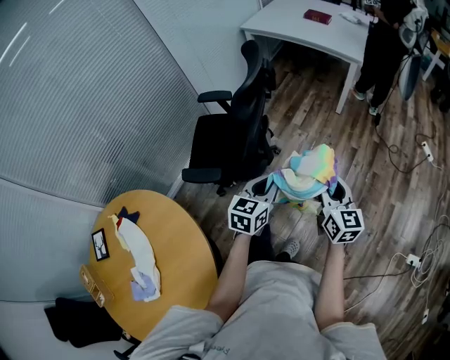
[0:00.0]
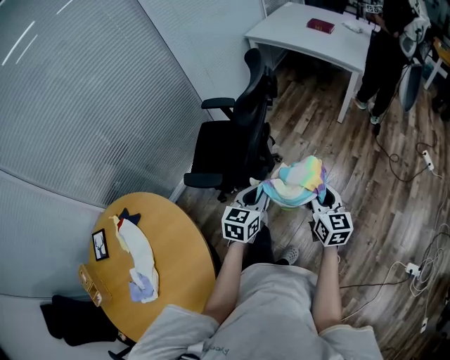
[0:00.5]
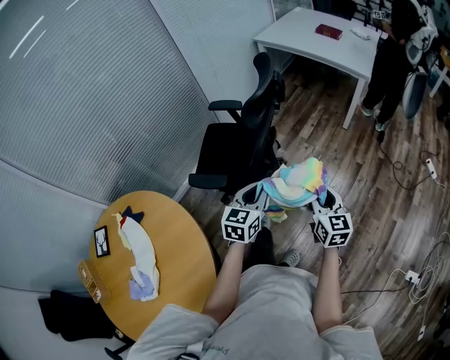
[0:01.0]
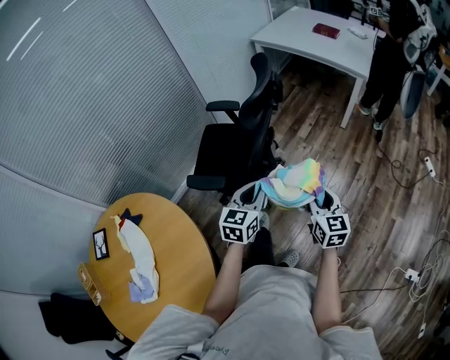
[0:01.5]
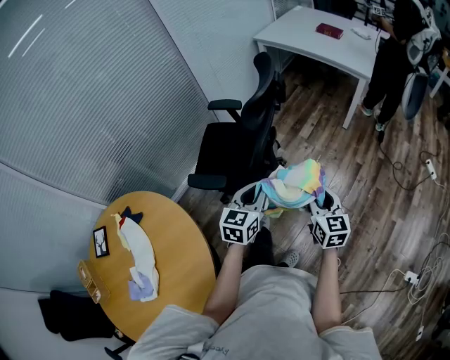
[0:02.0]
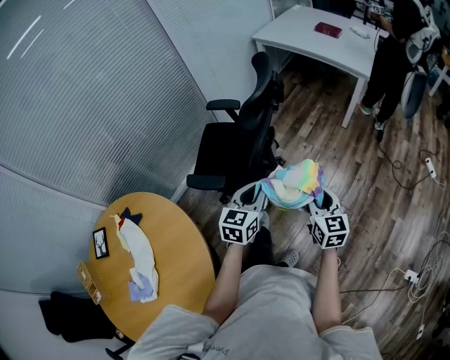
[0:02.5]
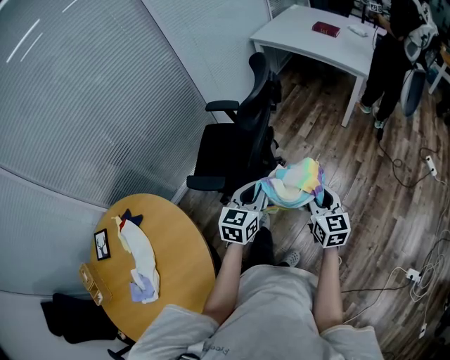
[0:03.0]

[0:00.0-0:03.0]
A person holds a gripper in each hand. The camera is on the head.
0:00.0 to 0:01.5: The right gripper moves about 5 cm. Meanwhile the left gripper shifts approximately 5 cm to the left.
0:01.5 to 0:03.0: Both grippers stay about where they are.

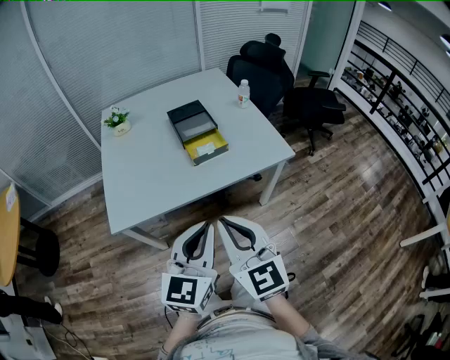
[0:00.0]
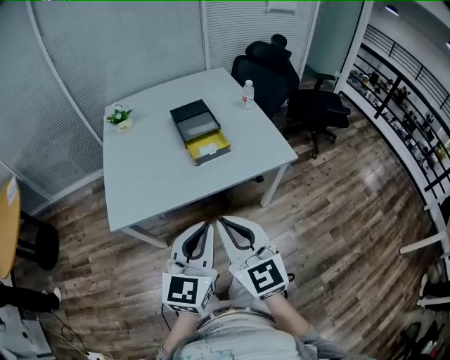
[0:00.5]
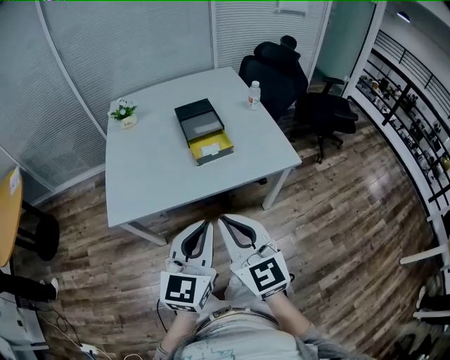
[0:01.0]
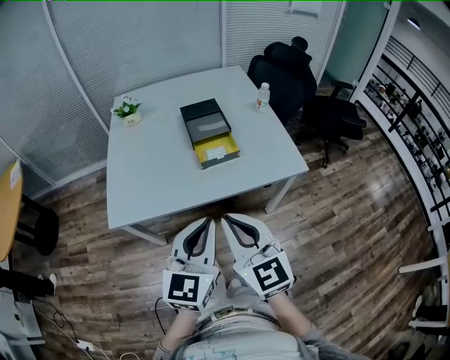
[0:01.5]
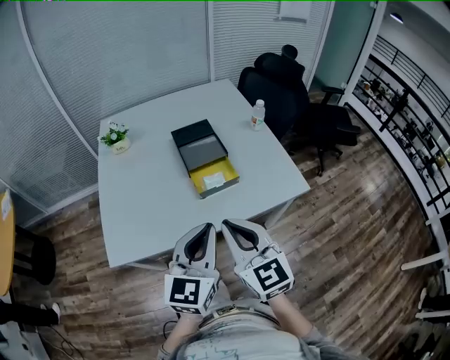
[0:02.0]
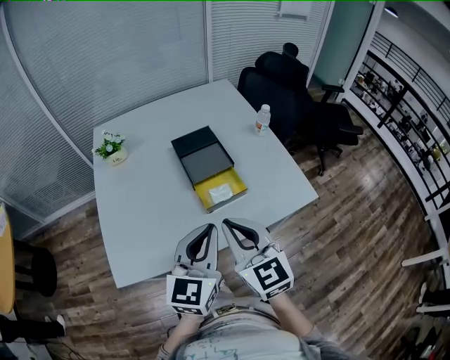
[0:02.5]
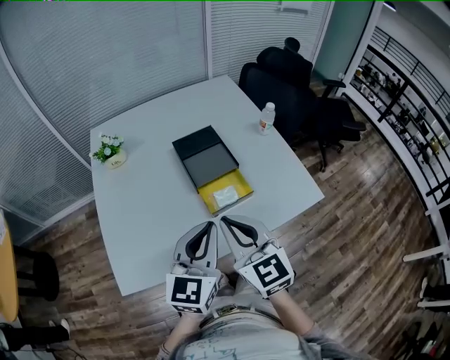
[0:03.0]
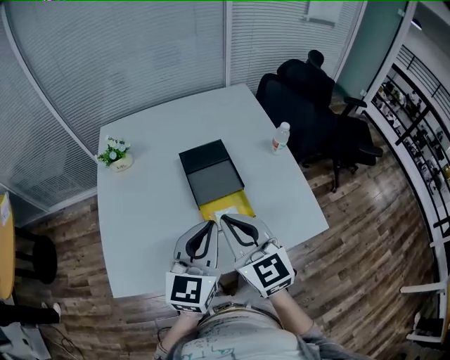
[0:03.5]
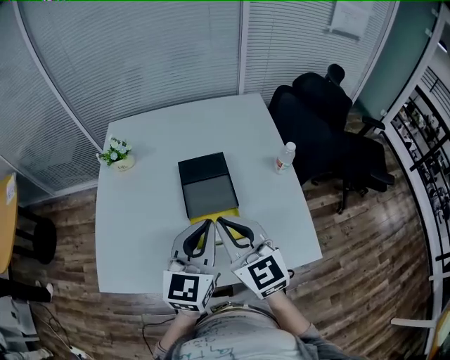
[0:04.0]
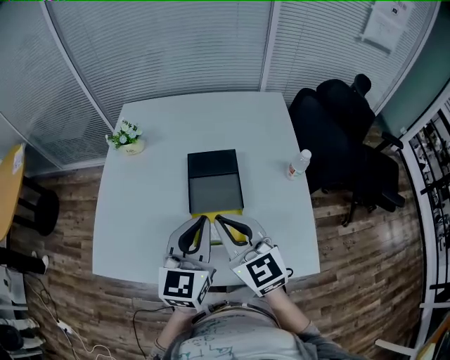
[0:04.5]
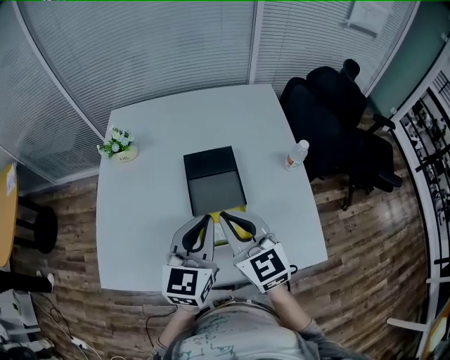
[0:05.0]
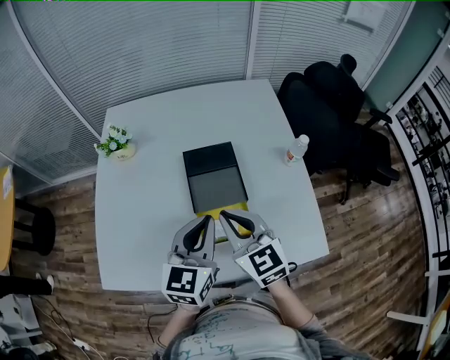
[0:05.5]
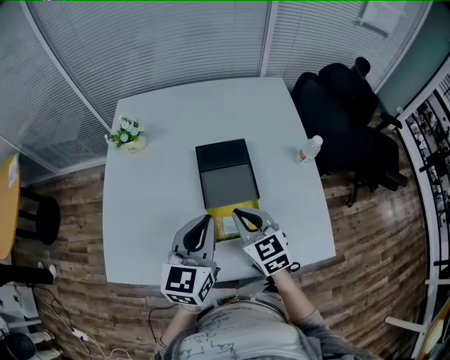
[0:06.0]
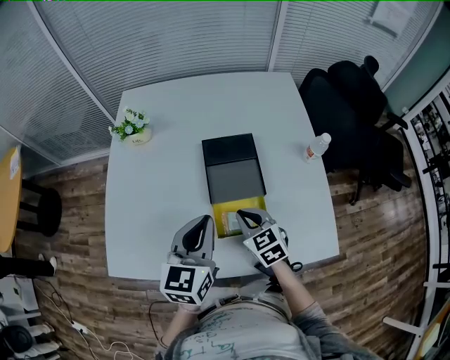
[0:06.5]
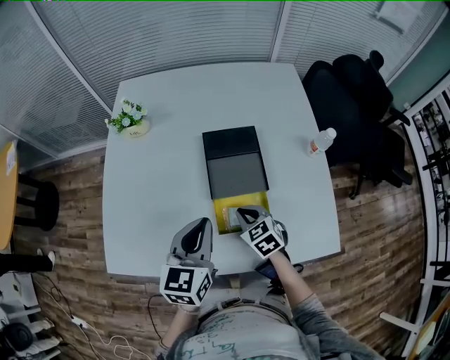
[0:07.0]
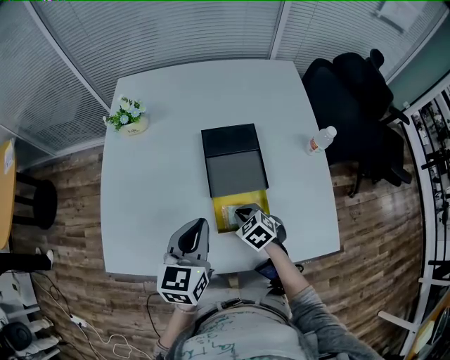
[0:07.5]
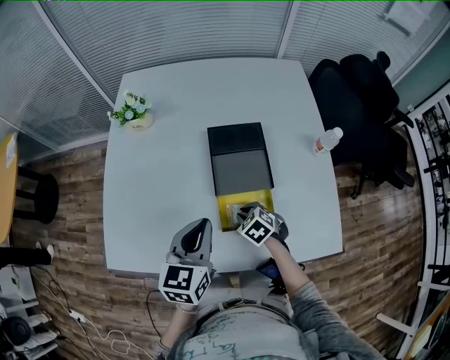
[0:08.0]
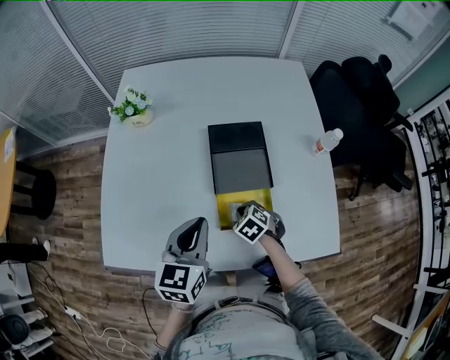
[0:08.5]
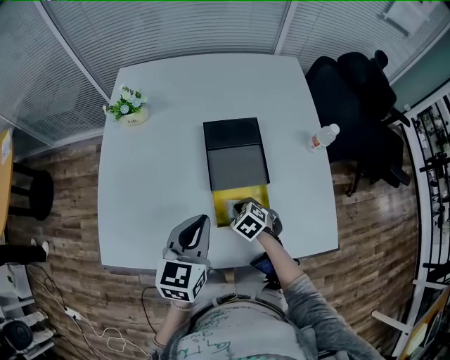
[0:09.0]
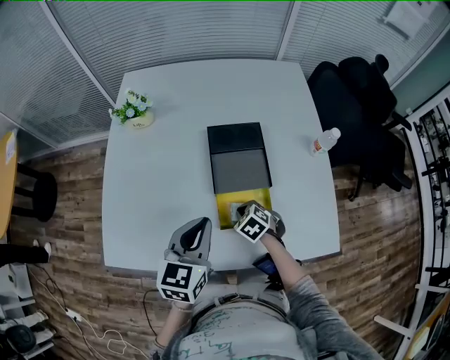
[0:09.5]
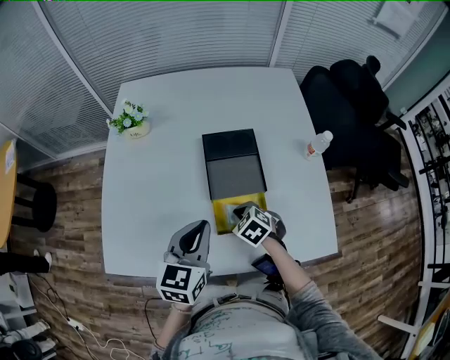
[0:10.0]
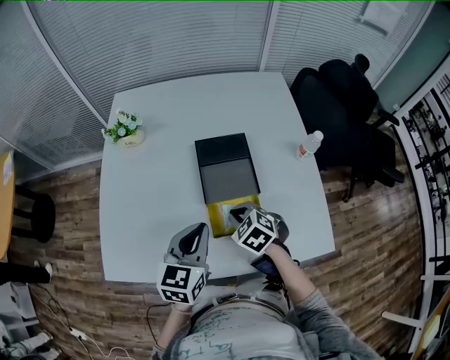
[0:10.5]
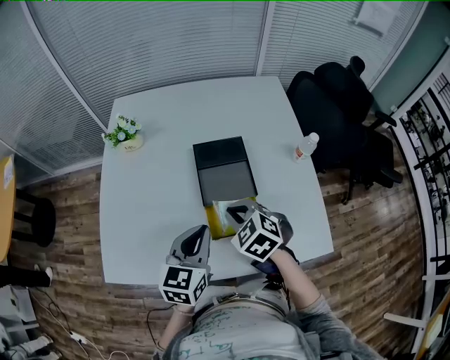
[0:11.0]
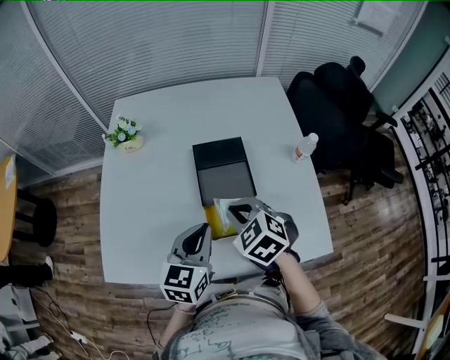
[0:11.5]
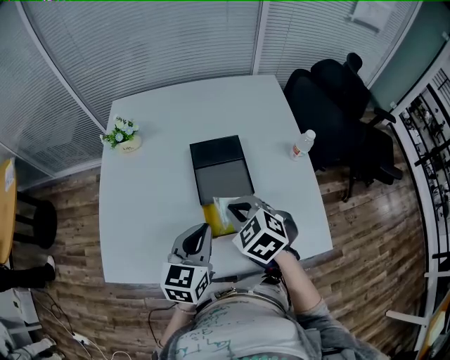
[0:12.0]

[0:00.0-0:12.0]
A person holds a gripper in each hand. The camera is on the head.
0:00.0 to 0:02.0: Both grippers move forward, roughly 20 cm.
0:02.0 to 0:04.0: The two grippers go roughly 30 cm forward.
0:04.0 to 0:06.0: The left gripper moves to the left, roughly 5 cm. The right gripper is displaced downward and forward by approximately 15 cm.
0:06.0 to 0:08.0: The left gripper travels downward and to the left by roughly 10 cm. Meanwhile the right gripper heads downward, covering about 20 cm, and points its fingers about 40 degrees further downward.
0:08.0 to 0:10.0: The grippers make only small movements.
0:10.0 to 0:12.0: The right gripper shifts roughly 20 cm upward.

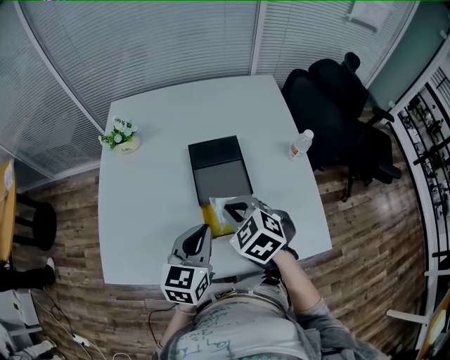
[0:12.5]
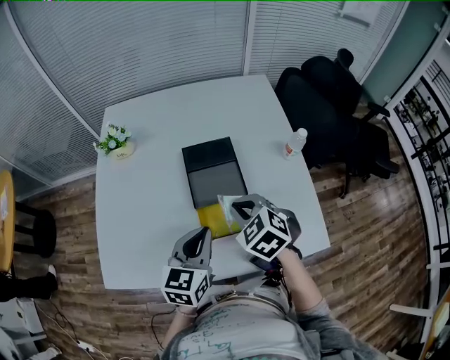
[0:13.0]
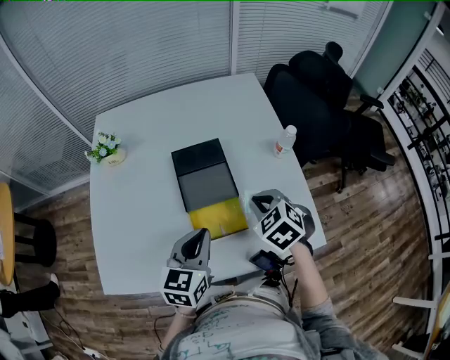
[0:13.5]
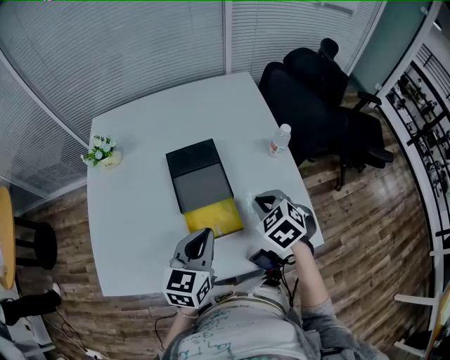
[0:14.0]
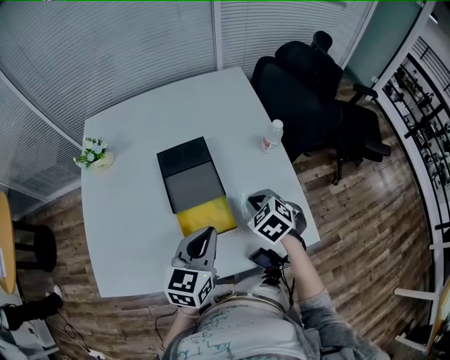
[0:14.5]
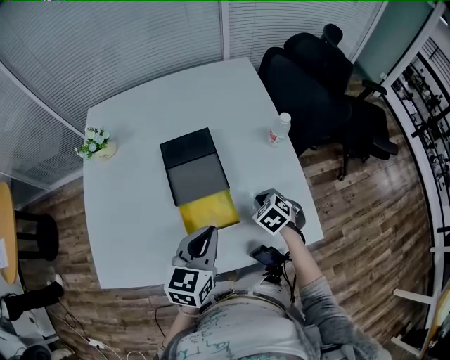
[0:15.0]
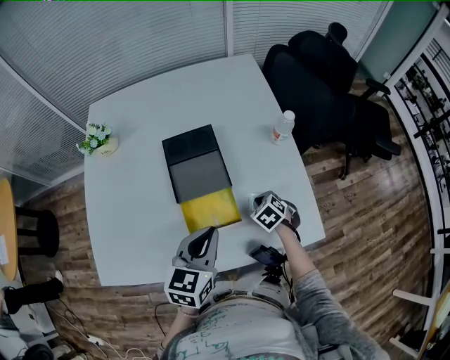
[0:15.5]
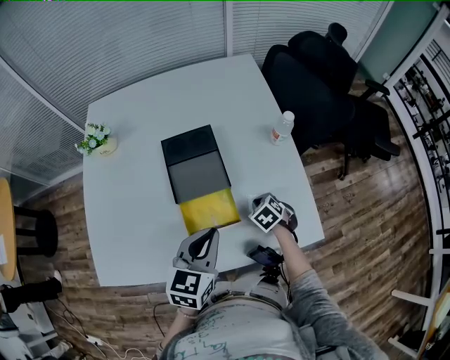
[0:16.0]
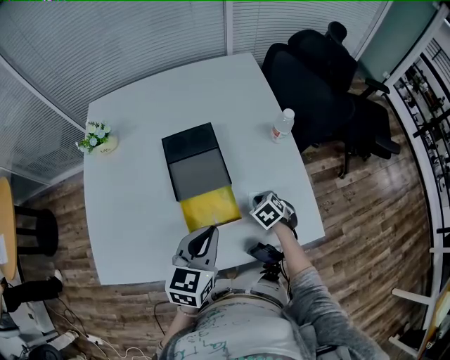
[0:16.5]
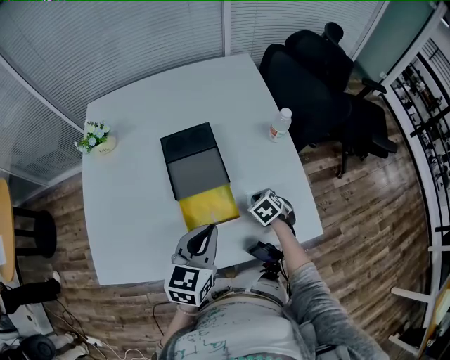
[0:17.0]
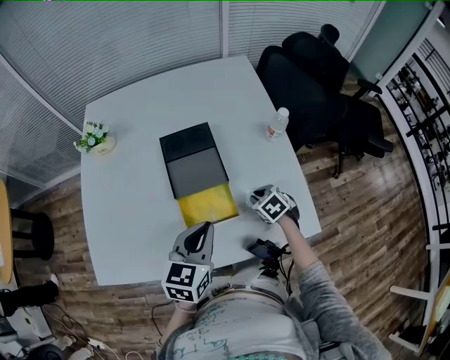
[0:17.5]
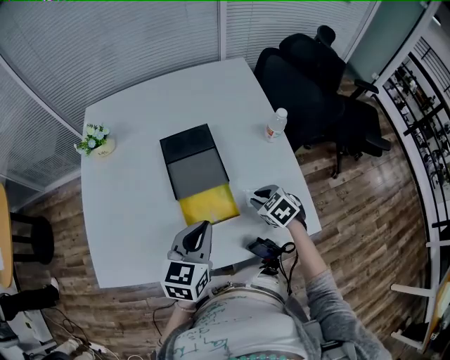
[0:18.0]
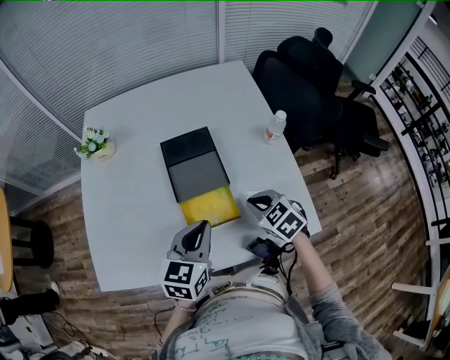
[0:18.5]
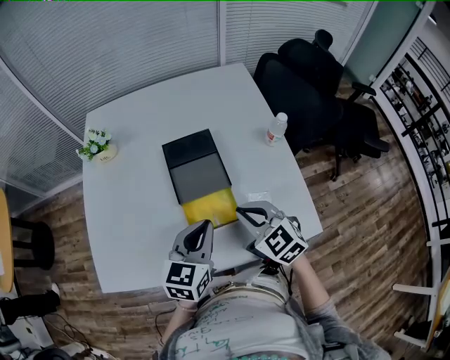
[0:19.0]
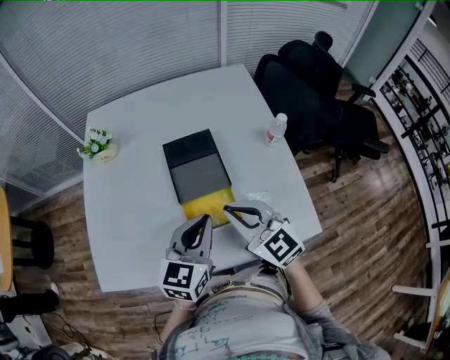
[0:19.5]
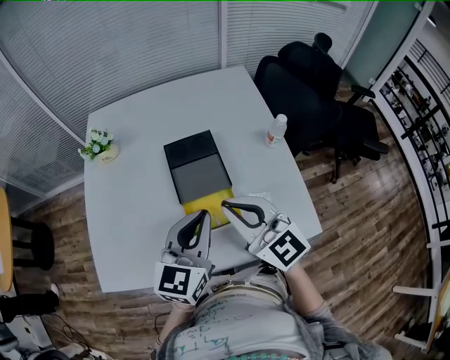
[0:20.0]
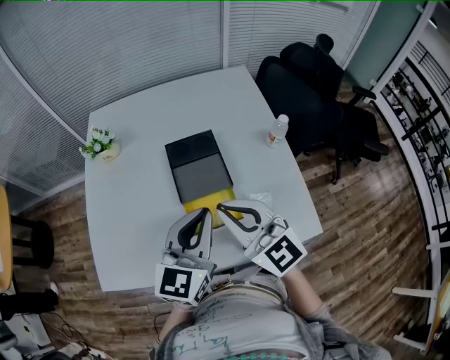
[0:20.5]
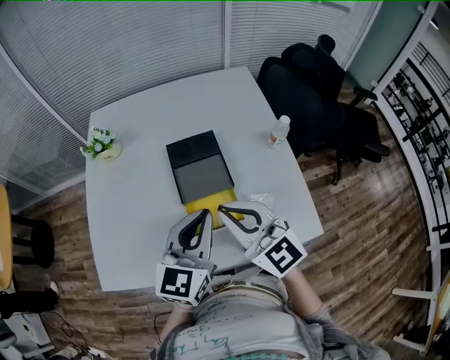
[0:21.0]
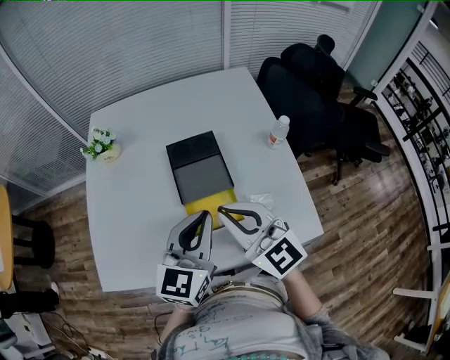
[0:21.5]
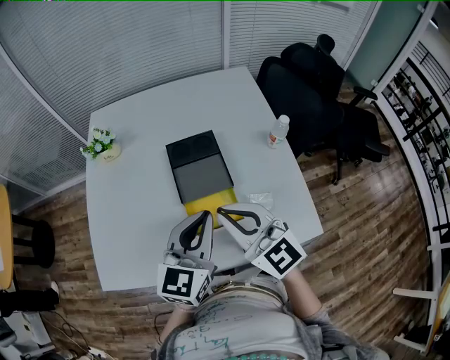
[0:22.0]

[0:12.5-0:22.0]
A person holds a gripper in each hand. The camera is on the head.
0:12.5 to 0:14.5: The right gripper heads to the right and downward, covering approximately 20 cm. Meanwhile the left gripper moves to the right, approximately 10 cm.
0:14.5 to 0:16.5: The right gripper moves downward, roughly 15 cm.
0:16.5 to 0:18.0: The right gripper goes some 10 cm upward.
0:18.0 to 0:20.0: The right gripper is displaced upward and to the left by some 30 cm, and tilts its fingers roughly 50 degrees upward. The left gripper shifts roughly 10 cm upward.
0:20.0 to 0:22.0: The grippers make only small movements.

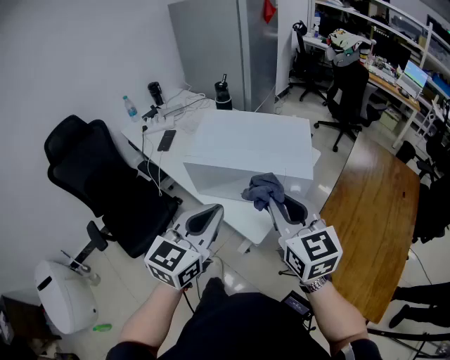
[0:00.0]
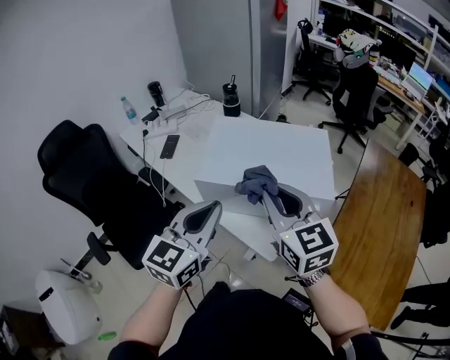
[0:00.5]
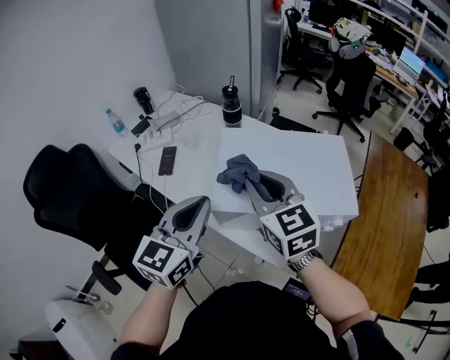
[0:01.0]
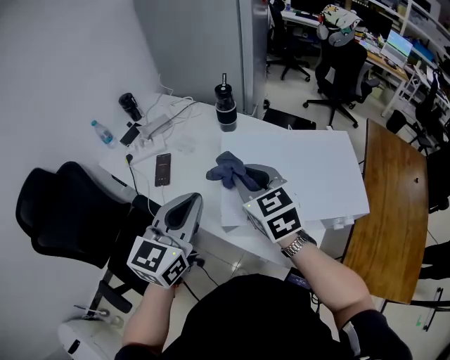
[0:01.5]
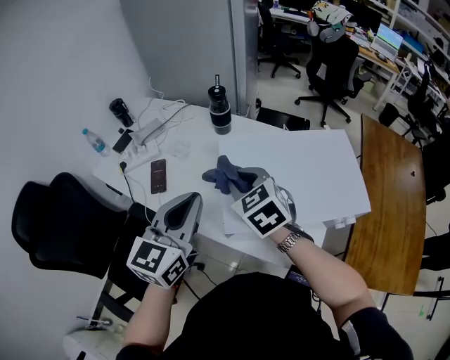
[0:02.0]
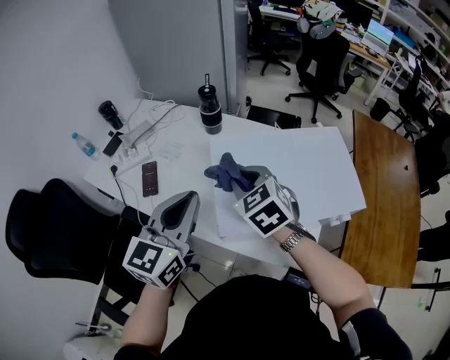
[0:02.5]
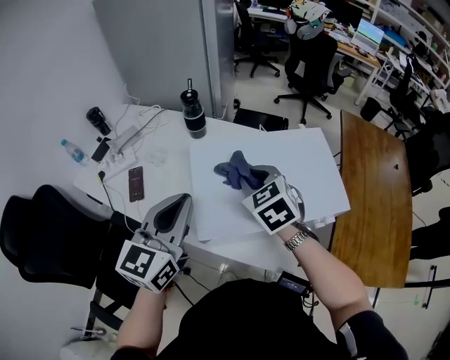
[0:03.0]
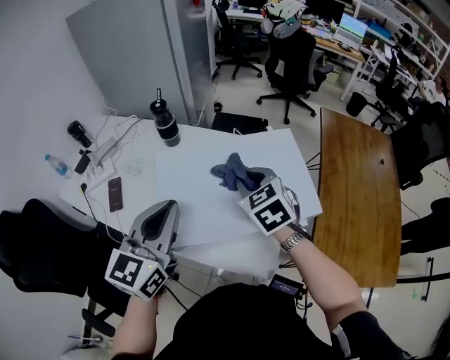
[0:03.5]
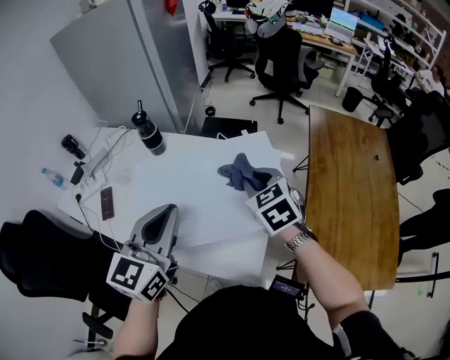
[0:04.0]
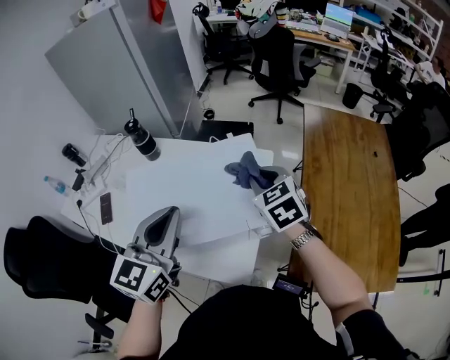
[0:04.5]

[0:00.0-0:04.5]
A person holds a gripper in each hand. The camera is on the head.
0:00.0 to 0:02.0: Both grippers move forward and to the left, some 40 cm. The right gripper rotates roughly 30 degrees.
0:02.0 to 0:04.5: Both grippers travel together to the right, about 30 cm.
